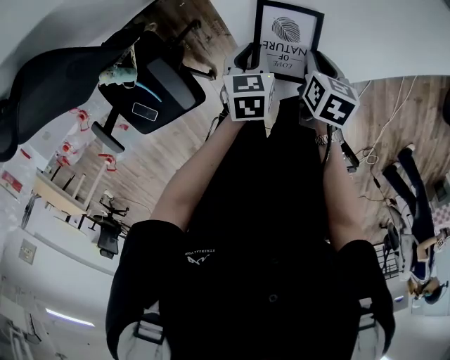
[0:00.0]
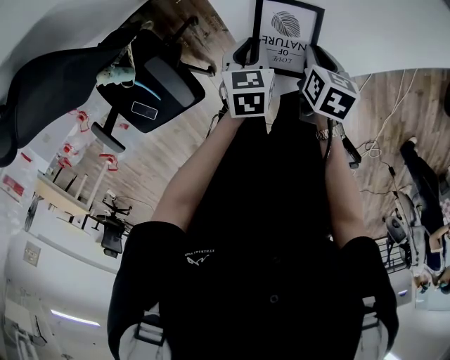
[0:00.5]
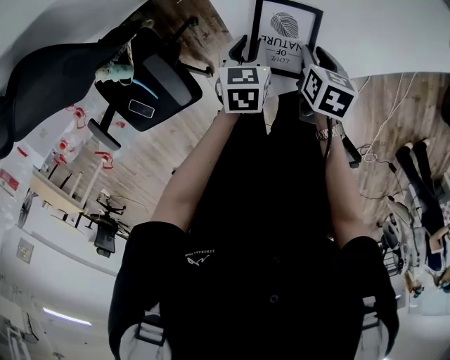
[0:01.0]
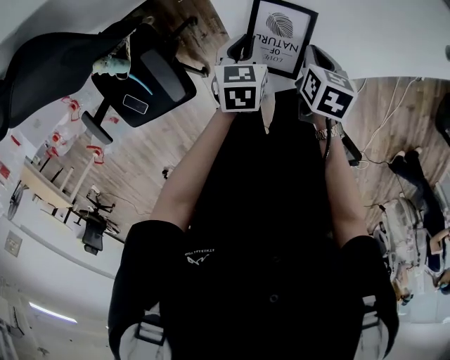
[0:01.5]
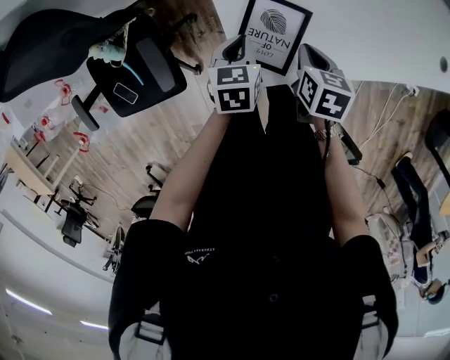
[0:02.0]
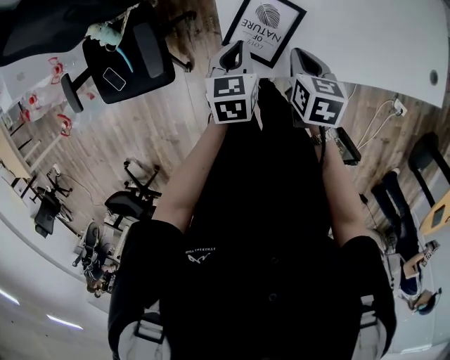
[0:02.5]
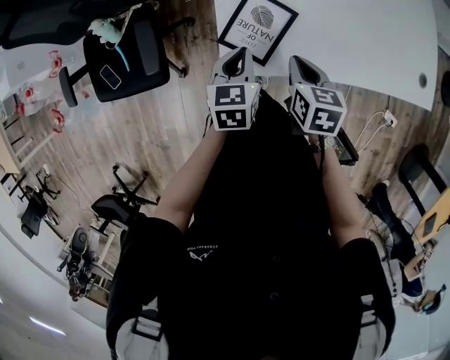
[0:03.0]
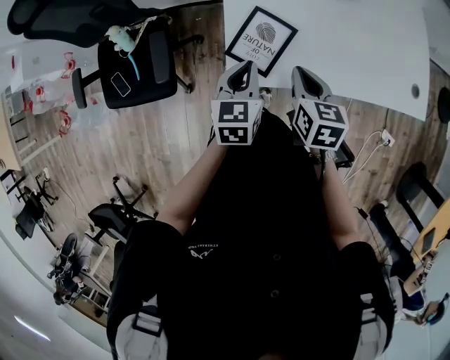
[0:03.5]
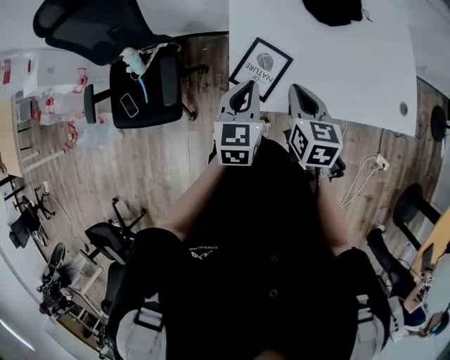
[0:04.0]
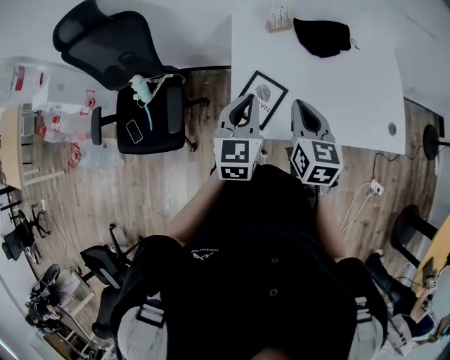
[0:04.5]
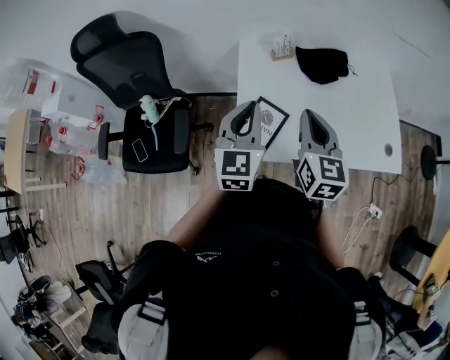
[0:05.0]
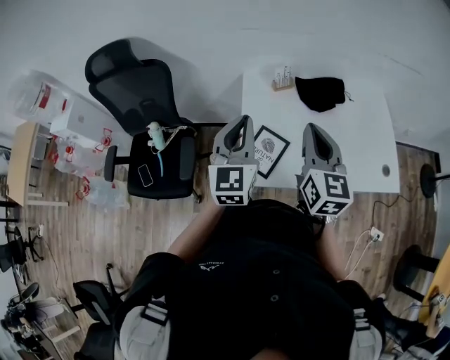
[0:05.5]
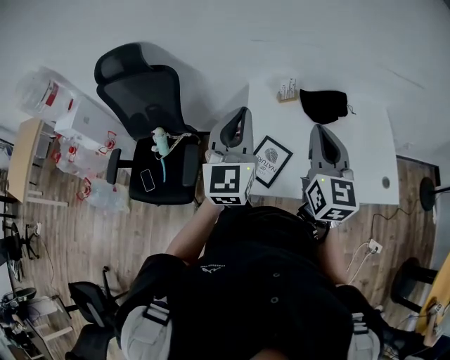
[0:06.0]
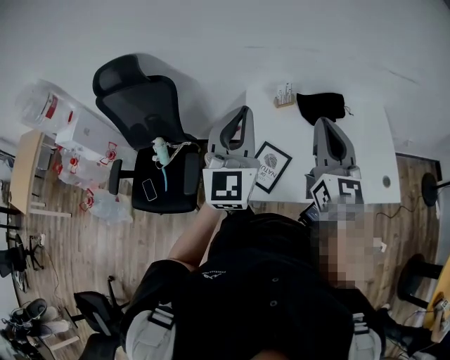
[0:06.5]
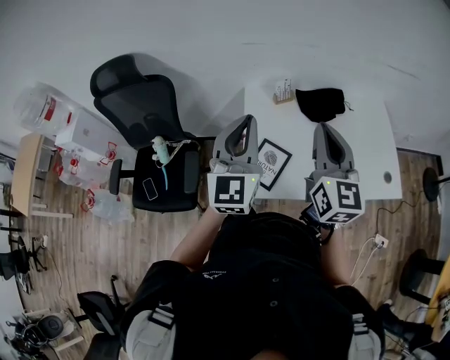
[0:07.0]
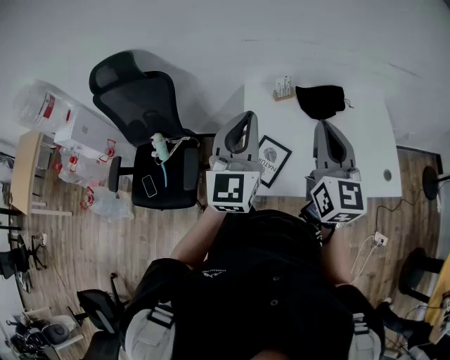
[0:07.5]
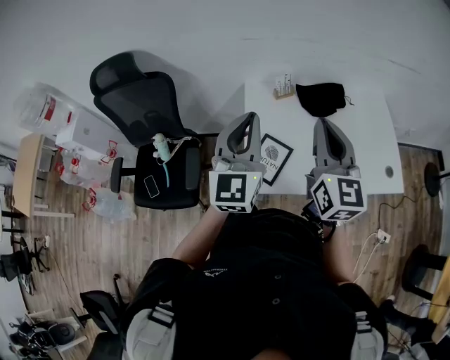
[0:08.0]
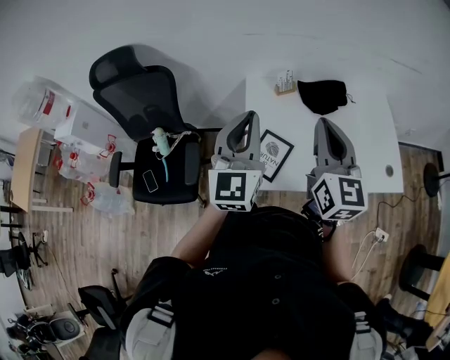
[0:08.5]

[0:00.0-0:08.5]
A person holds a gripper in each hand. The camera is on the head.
0:00.0 to 0:02.0: The grippers make only small movements.
0:02.0 to 0:04.0: The left gripper moves upward and backward, roughly 25 cm, and swivels about 30 degrees, while the right gripper is displaced upward by some 20 cm, and swivels roughly 30 degrees.
0:04.0 to 0:06.5: The grippers both shift upward by approximately 30 cm. The left gripper angles its fingers upward, by approximately 40 degrees, while the right gripper tips its fingers upward by about 40 degrees.
0:06.5 to 0:08.5: The left gripper changes place by roughly 5 cm.

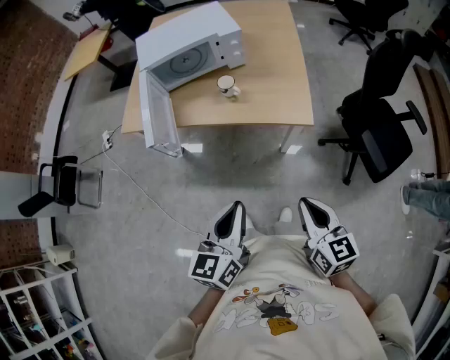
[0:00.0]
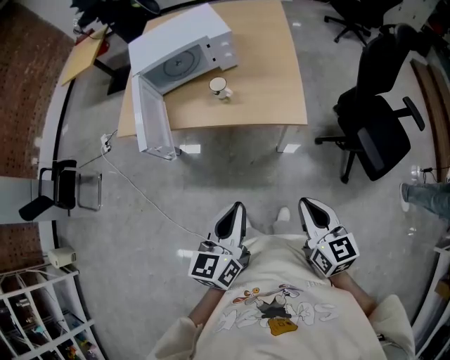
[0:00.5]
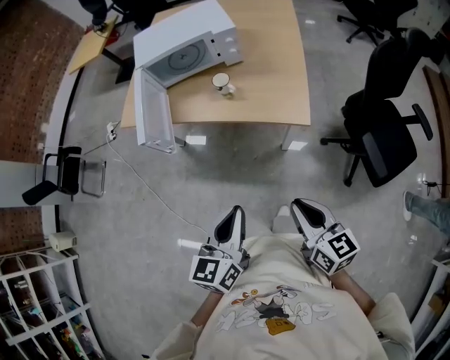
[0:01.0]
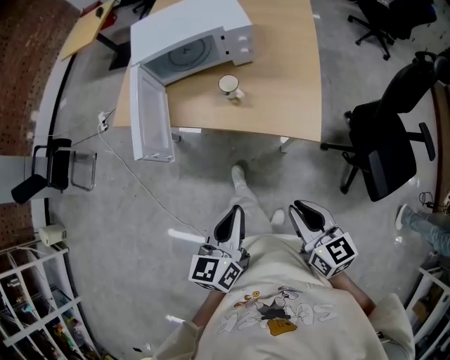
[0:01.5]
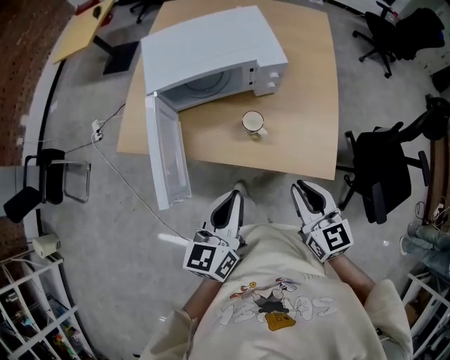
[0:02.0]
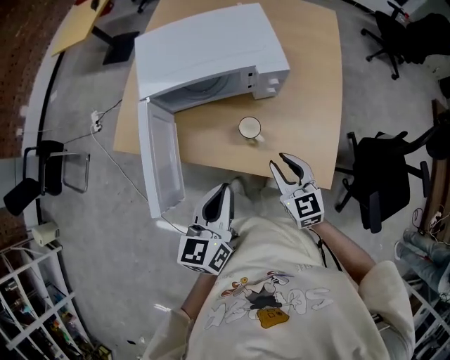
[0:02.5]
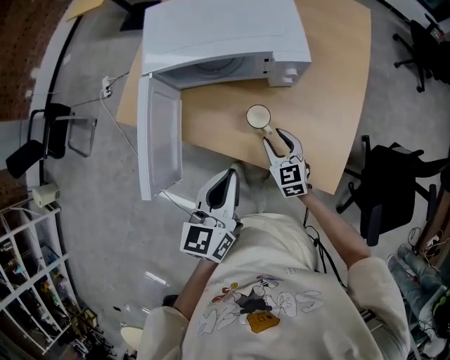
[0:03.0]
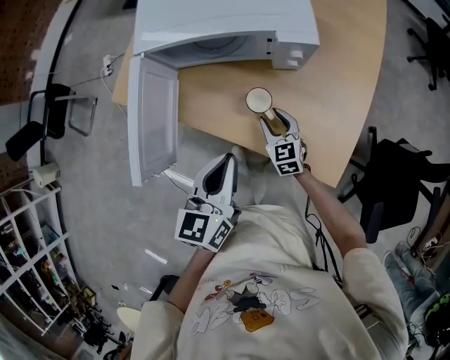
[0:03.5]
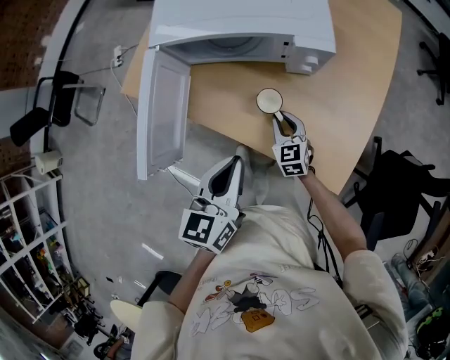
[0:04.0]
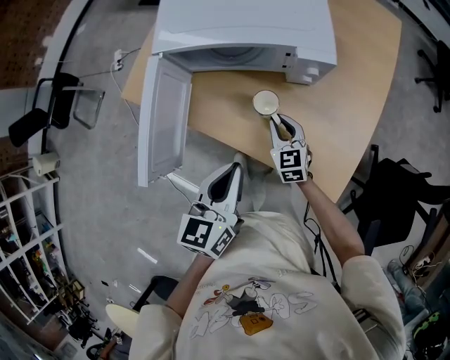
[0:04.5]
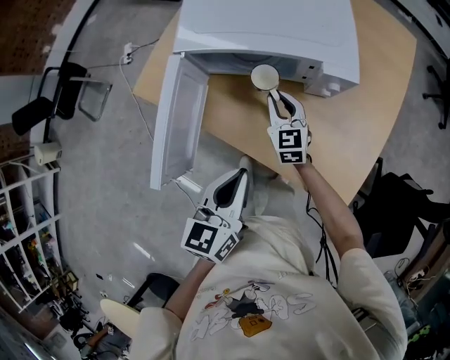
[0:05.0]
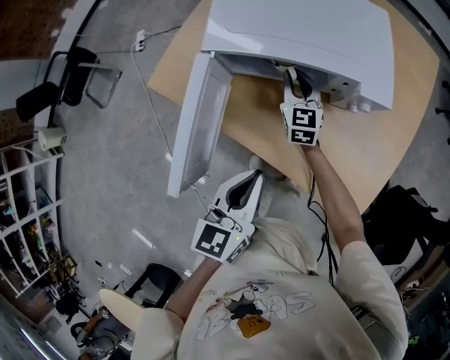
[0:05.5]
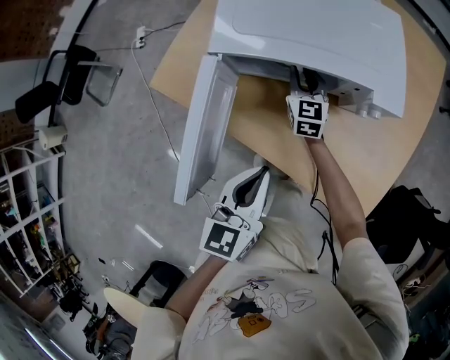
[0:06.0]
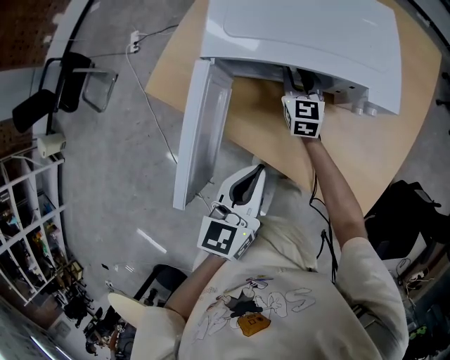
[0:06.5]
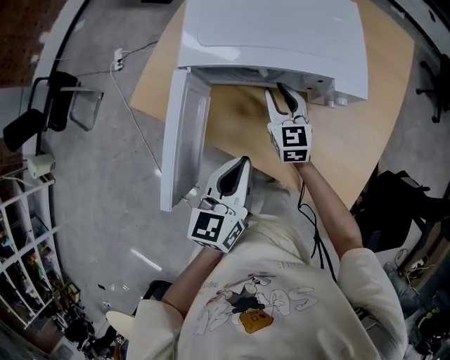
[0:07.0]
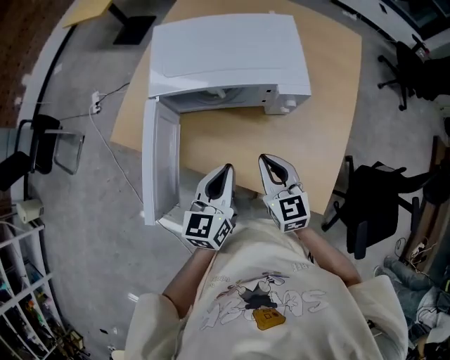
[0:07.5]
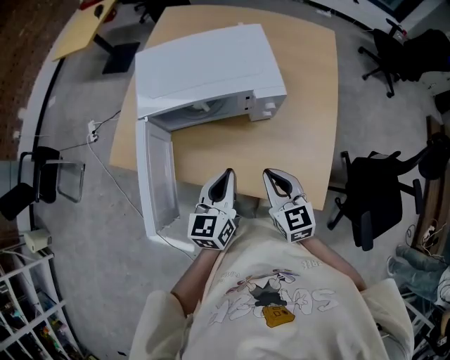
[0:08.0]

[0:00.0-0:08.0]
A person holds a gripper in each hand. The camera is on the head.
0:00.0 to 0:02.0: The two grippers go approximately 30 cm forward.
0:02.0 to 0:04.0: The right gripper moves downward and forward, approximately 30 cm, swivels some 20 degrees, and opens, then closes once more; the left gripper heads forward and downward, covering some 10 cm.
0:04.0 to 0:06.0: The left gripper is displaced to the left and forward by approximately 10 cm; the right gripper travels forward and to the left by approximately 25 cm.
0:06.0 to 0:08.0: The left gripper goes roughly 10 cm to the right, while the right gripper is displaced backward, to the right and upward by approximately 35 cm.

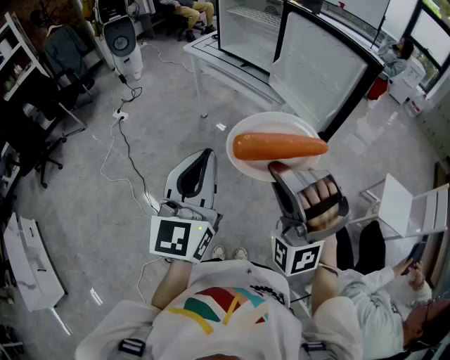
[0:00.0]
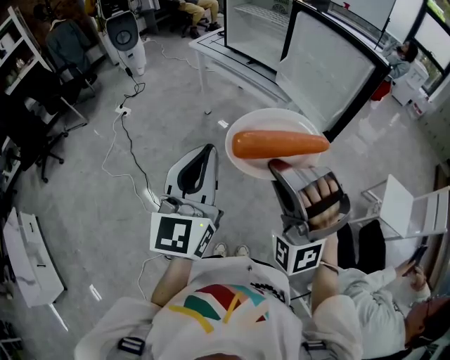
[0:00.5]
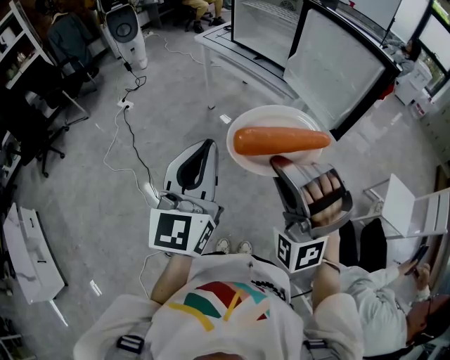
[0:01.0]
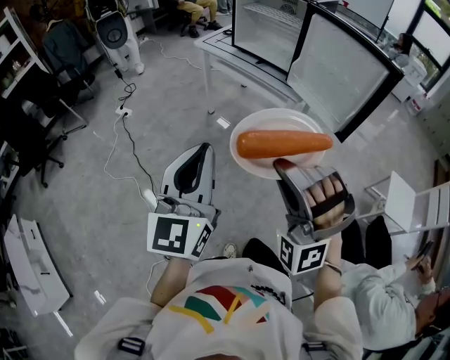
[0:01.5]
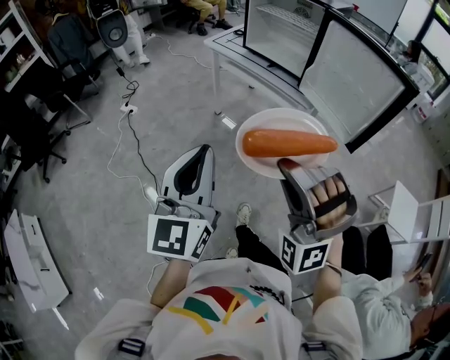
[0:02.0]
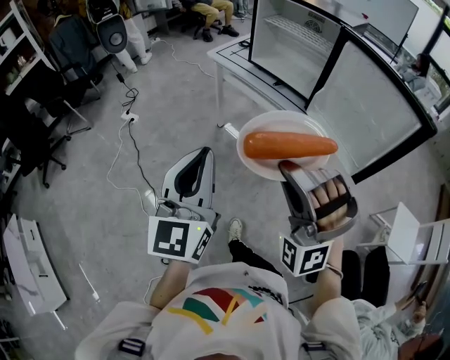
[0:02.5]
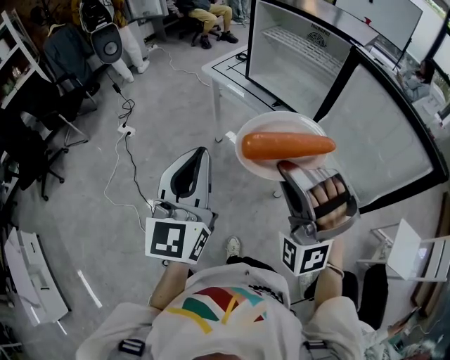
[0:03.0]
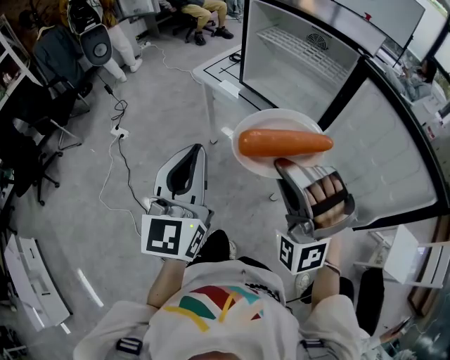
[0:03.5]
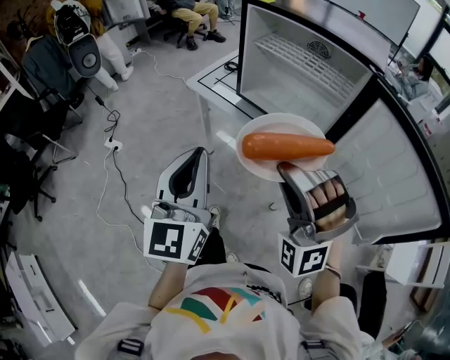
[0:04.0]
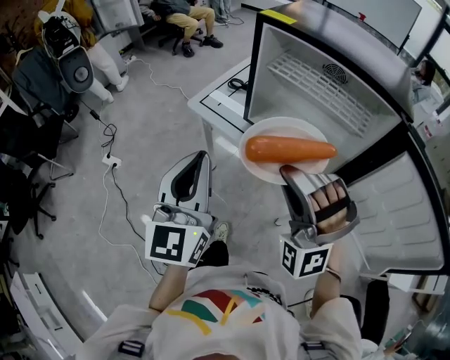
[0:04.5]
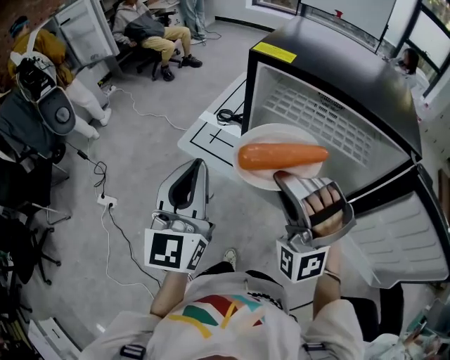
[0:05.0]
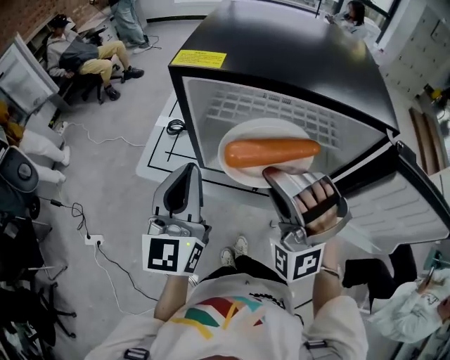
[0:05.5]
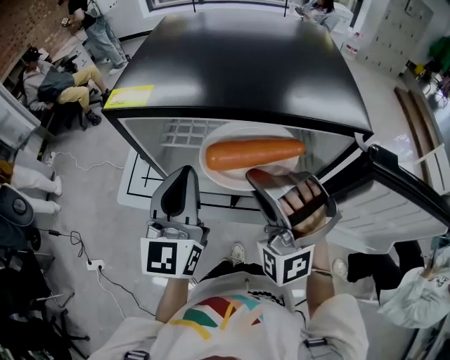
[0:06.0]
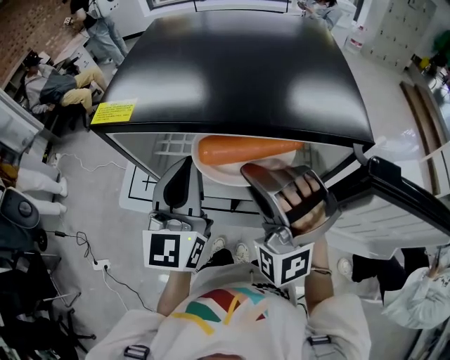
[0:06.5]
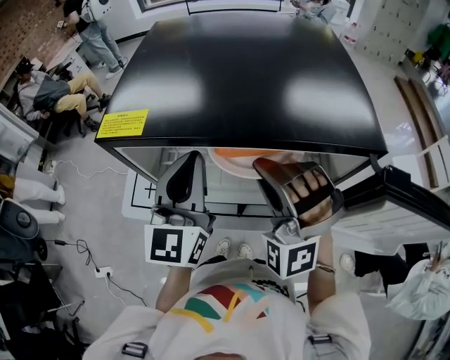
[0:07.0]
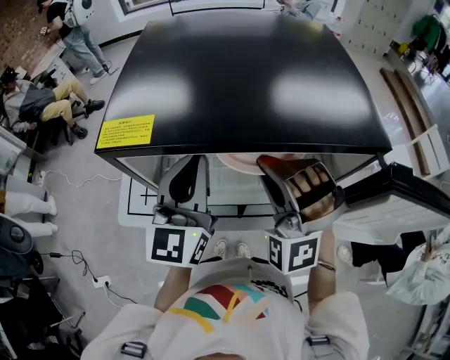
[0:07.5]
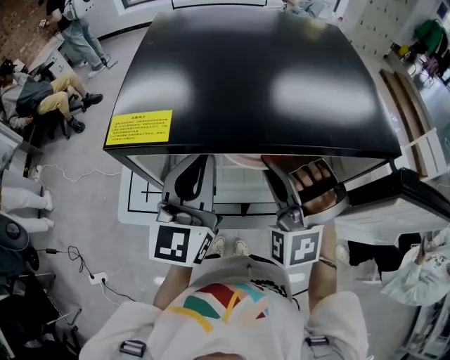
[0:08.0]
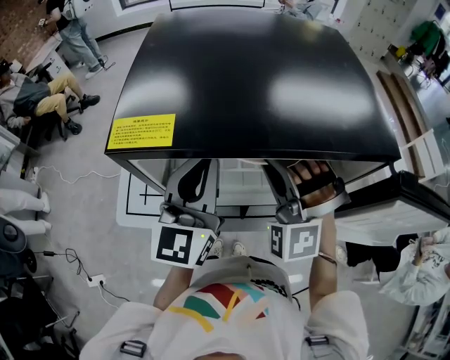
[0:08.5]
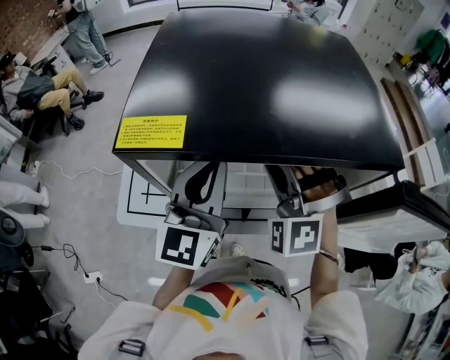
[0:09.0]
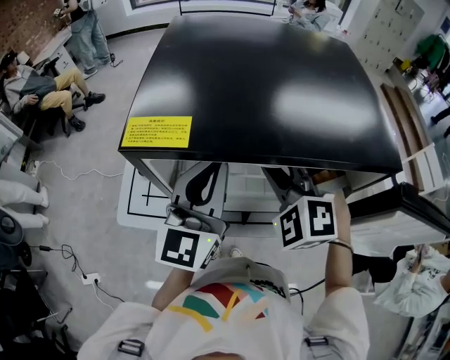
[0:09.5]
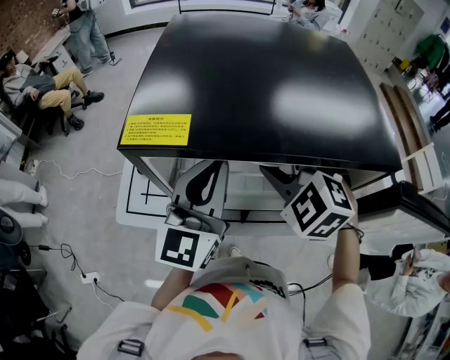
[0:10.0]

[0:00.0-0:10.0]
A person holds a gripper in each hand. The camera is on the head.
0:00.0 to 0:02.0: The left gripper ends up about 15 cm from where it was.
0:02.0 to 0:04.0: The left gripper changes place by some 40 cm.
0:04.0 to 0:06.0: The left gripper moves some 35 cm, and turns by some 30 degrees.
0:06.0 to 0:08.0: The left gripper moves approximately 10 cm.
